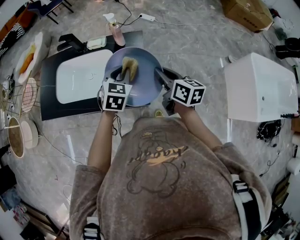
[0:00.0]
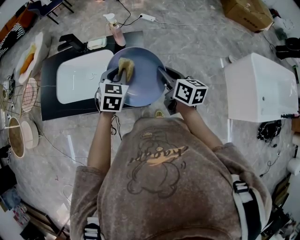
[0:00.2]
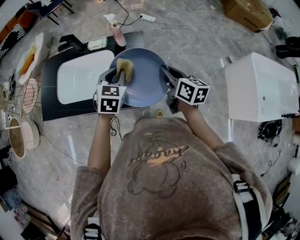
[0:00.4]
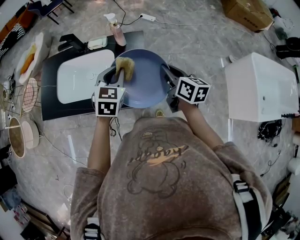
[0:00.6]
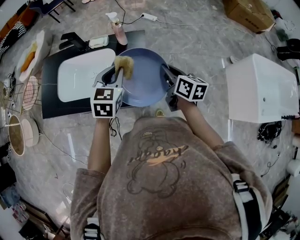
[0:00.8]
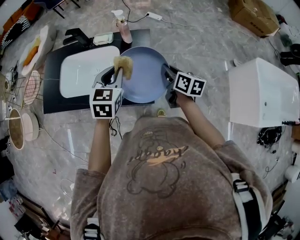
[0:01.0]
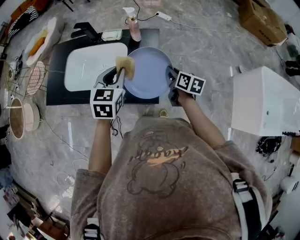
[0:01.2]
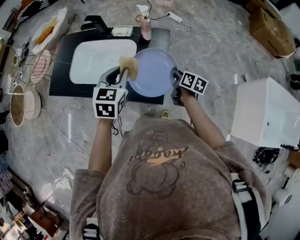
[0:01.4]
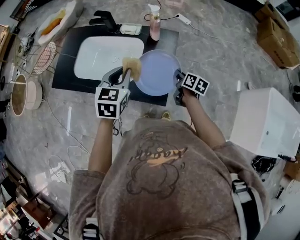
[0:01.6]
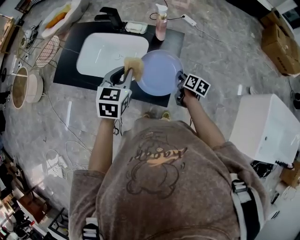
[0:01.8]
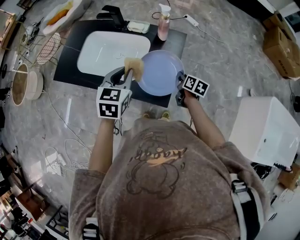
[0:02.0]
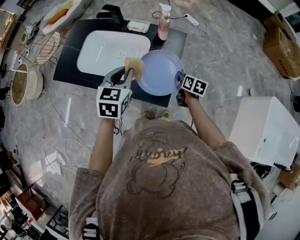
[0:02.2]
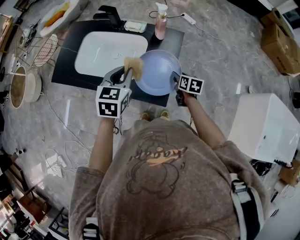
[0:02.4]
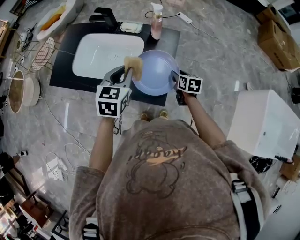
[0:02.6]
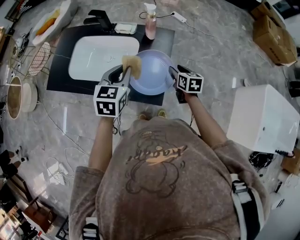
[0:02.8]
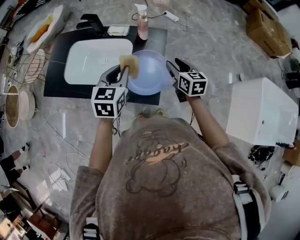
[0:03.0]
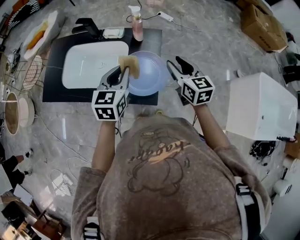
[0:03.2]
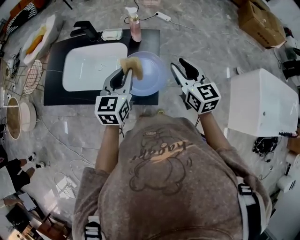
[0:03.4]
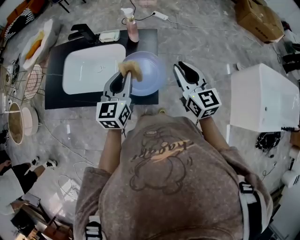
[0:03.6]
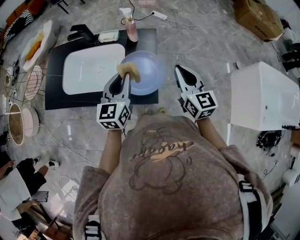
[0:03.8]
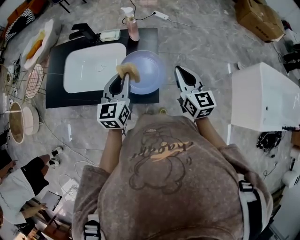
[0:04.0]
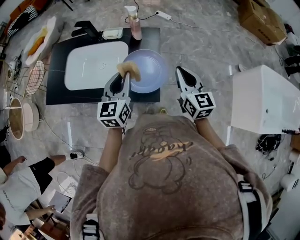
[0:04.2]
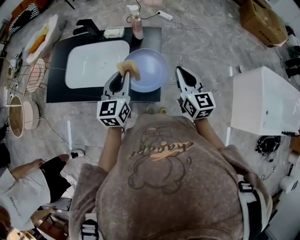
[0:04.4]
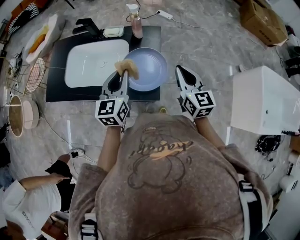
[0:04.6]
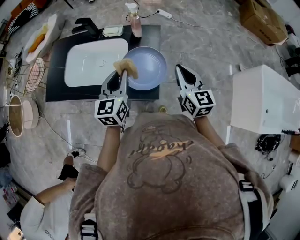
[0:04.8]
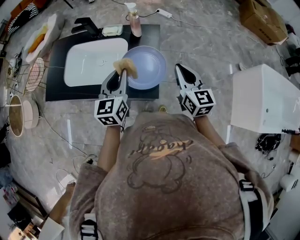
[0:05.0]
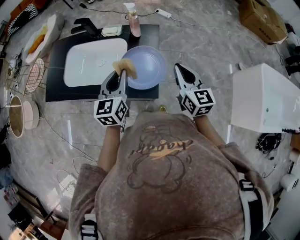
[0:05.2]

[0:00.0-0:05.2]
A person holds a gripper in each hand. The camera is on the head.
0:00.0 to 0:01.8: The left gripper moves to the left, some 10 cm, and rotates roughly 20 degrees. Meanwhile the right gripper moves downward and forward, approximately 20 cm, and rotates about 20 degrees.
0:01.8 to 0:03.4: The left gripper moves to the right, some 5 cm, while the right gripper travels upward by some 25 cm, twists approximately 40 degrees counterclockwise, seen from behind, and opens.
0:03.4 to 0:05.2: The right gripper closes.

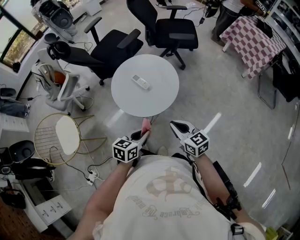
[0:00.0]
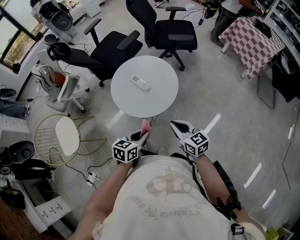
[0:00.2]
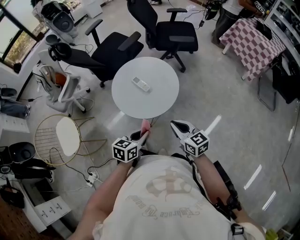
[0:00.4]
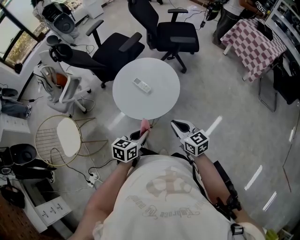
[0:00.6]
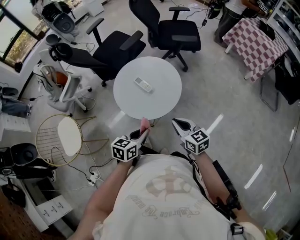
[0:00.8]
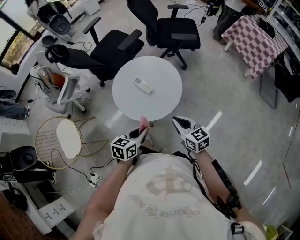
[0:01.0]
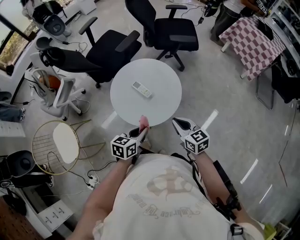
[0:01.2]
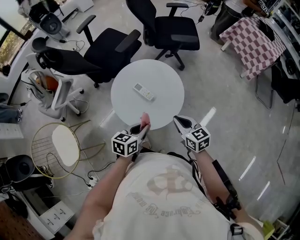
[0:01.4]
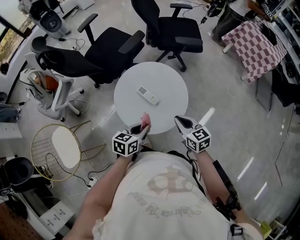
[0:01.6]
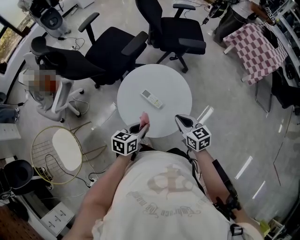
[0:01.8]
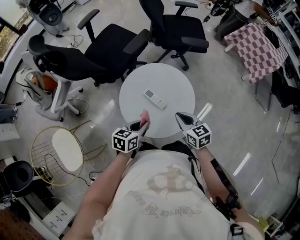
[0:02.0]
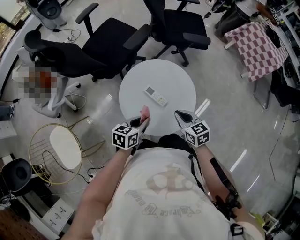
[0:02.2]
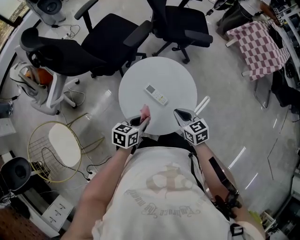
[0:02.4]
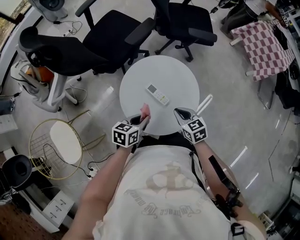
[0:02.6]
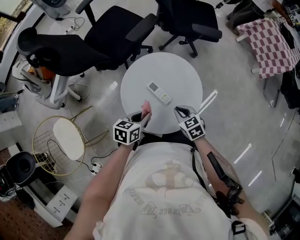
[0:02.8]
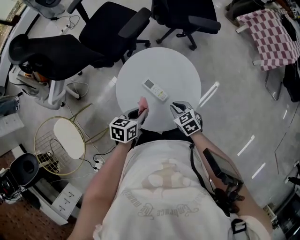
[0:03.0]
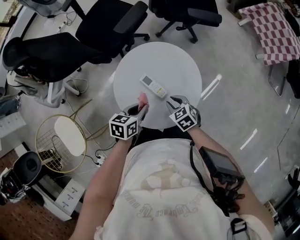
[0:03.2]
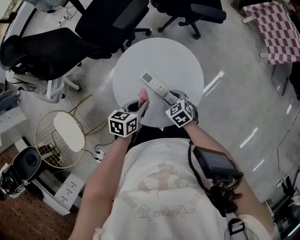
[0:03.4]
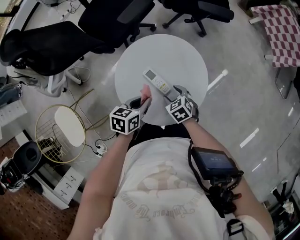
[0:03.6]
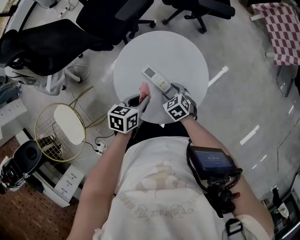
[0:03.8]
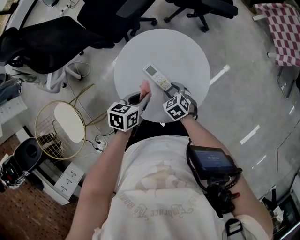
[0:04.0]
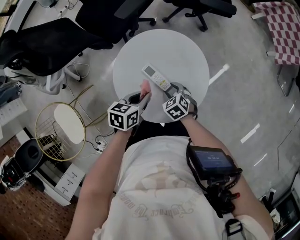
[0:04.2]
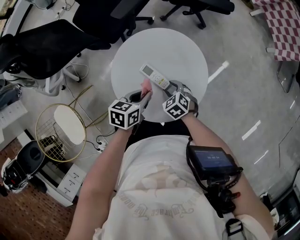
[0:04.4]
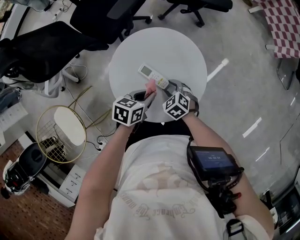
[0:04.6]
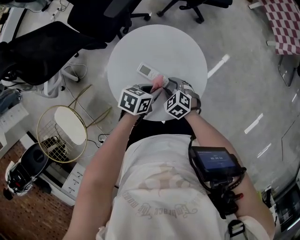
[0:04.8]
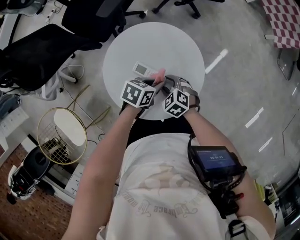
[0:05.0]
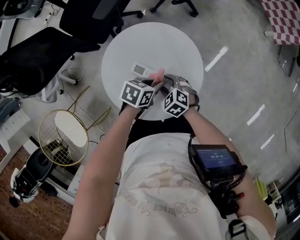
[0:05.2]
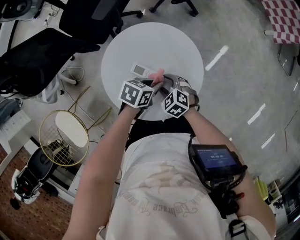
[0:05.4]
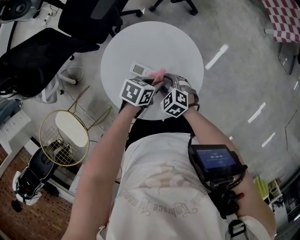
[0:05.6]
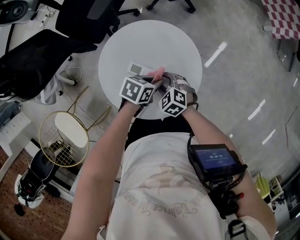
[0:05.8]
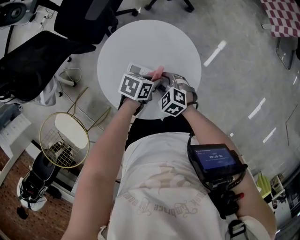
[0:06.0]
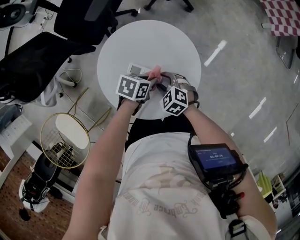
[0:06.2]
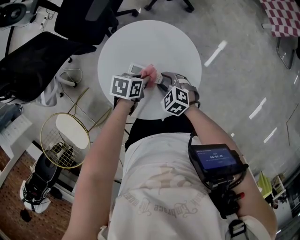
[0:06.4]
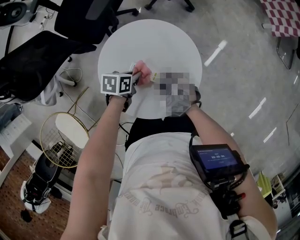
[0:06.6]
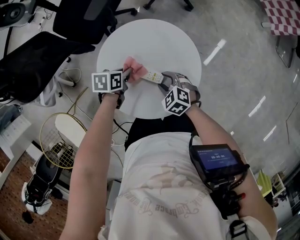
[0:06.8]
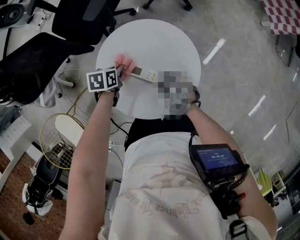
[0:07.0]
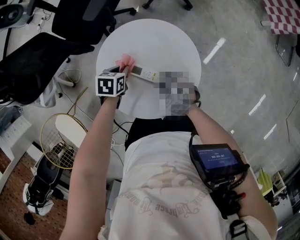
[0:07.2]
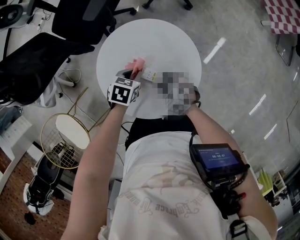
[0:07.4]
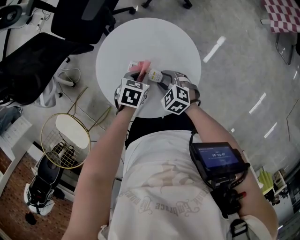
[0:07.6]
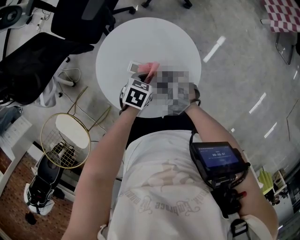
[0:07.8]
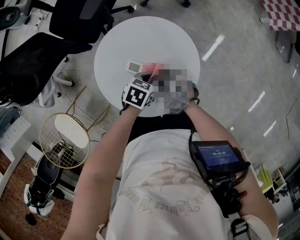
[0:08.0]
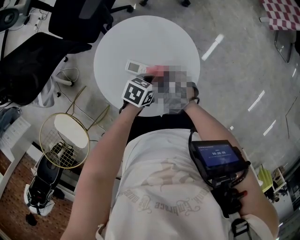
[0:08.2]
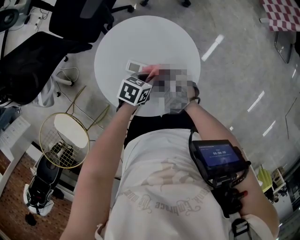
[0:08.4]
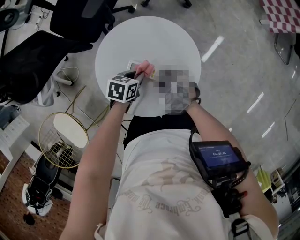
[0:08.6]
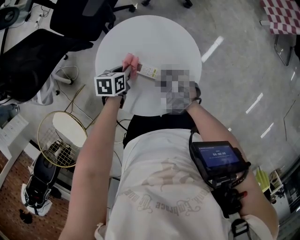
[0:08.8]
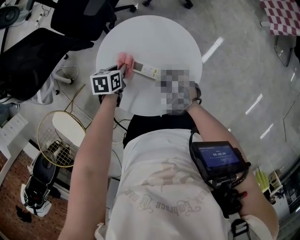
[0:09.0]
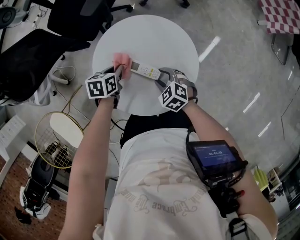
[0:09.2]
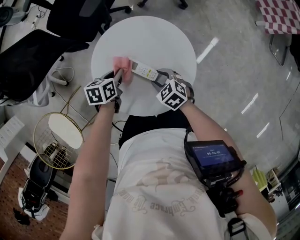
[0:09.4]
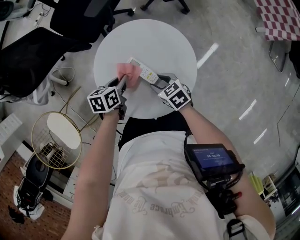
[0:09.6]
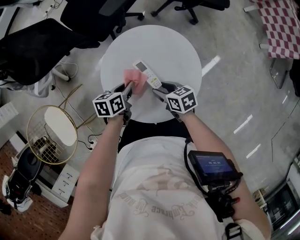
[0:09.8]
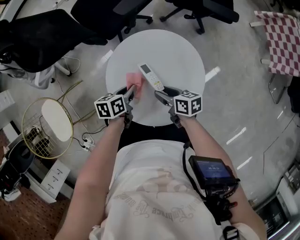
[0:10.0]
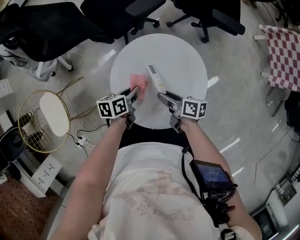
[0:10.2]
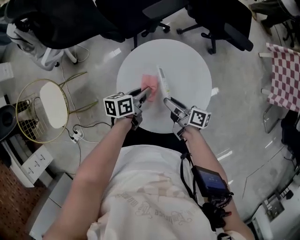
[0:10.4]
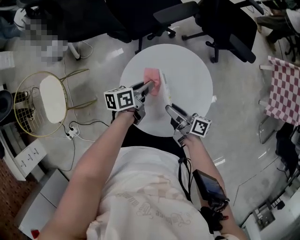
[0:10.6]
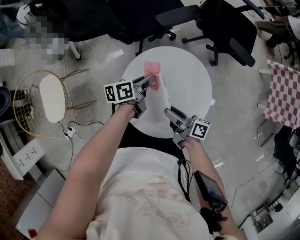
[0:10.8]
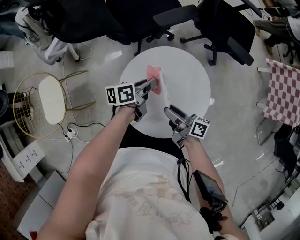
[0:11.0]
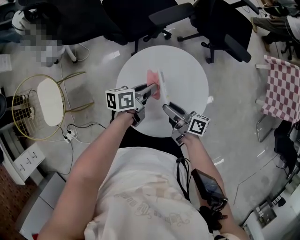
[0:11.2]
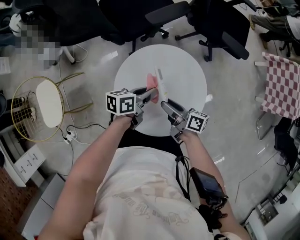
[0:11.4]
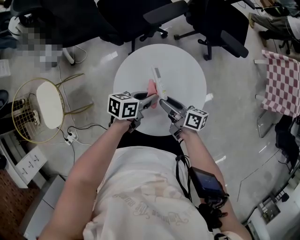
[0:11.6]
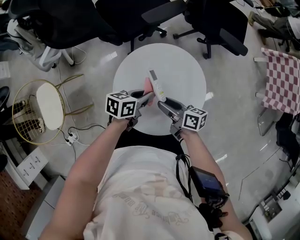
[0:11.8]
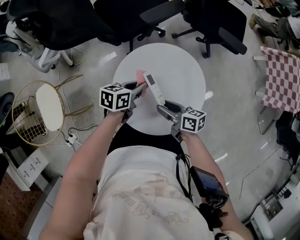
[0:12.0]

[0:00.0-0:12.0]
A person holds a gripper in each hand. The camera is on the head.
0:00.0 to 0:01.6: The right gripper moves forward, some 15 cm; the left gripper shifts roughly 15 cm forward and to the left.
0:01.6 to 0:03.0: The right gripper shifts about 15 cm downward, forward and to the left, and turns by about 30 degrees; the left gripper heads forward, to the left and downward, covering some 15 cm.
0:03.0 to 0:04.4: The right gripper moves downward, roughly 10 cm, and opens its fingers.
0:04.4 to 0:06.0: The left gripper ends up about 10 cm from where it was, and changes its angle by approximately 30 degrees.
0:06.0 to 0:07.6: The left gripper swivels roughly 20 degrees.
0:07.6 to 0:09.0: The left gripper changes place by approximately 10 cm, and rotates approximately 20 degrees.
0:09.0 to 0:10.4: The right gripper travels upward by about 10 cm, and rolls clockwise, seen from behind, by some 70 degrees; the left gripper goes about 10 cm upward and backward, and tilts its fingers about 30 degrees upward.
0:10.4 to 0:12.0: The right gripper rotates some 20 degrees, while the left gripper moves forward and backward over some 10 cm, changing direction 2 times.

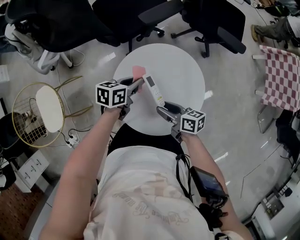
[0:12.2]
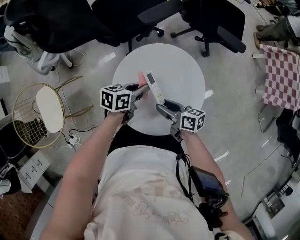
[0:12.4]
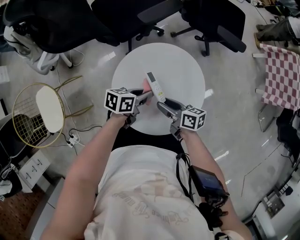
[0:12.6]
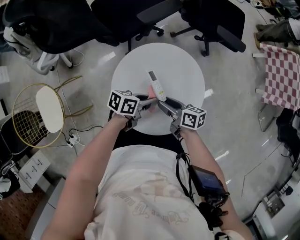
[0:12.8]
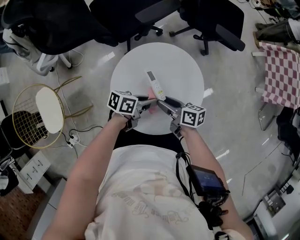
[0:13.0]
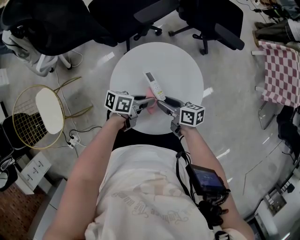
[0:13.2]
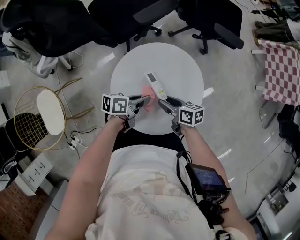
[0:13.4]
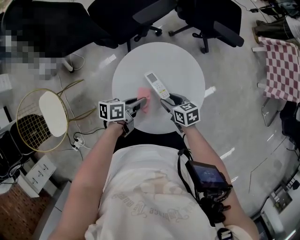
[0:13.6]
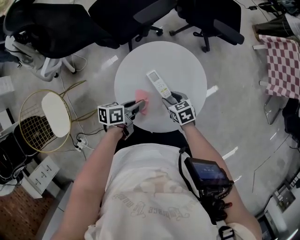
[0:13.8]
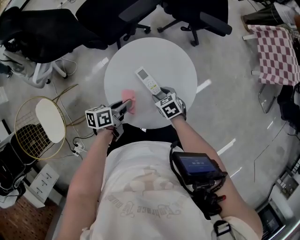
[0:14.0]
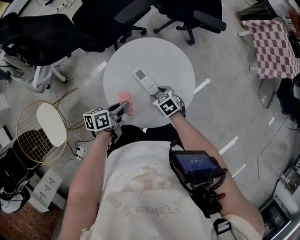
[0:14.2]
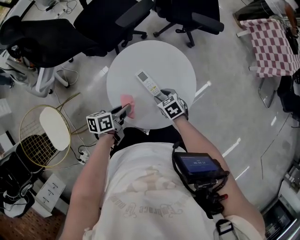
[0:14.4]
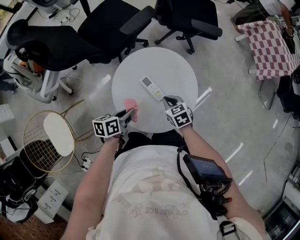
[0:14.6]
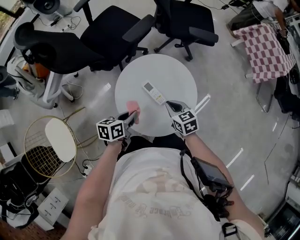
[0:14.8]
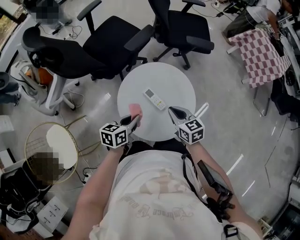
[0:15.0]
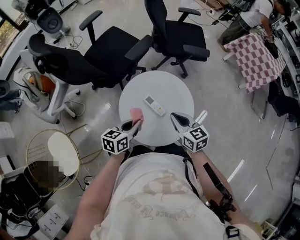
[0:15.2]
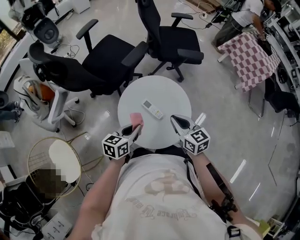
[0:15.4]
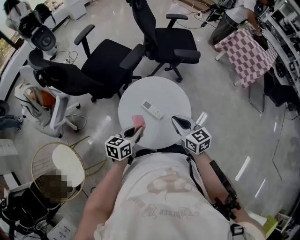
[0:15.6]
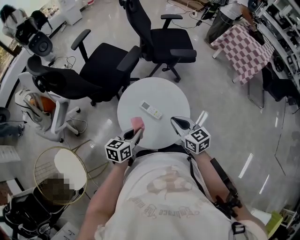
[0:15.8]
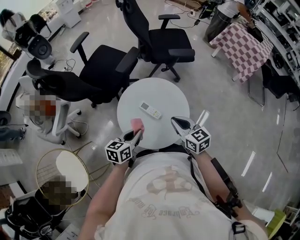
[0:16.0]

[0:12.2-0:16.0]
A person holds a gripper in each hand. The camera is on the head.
0:12.2 to 0:13.4: The left gripper moves about 10 cm, and changes its angle by approximately 20 degrees.
0:13.4 to 0:14.8: The right gripper shifts approximately 5 cm upward, swivels some 40 degrees, and closes its fingers. The left gripper moves approximately 10 cm, and swivels roughly 20 degrees.
0:14.8 to 0:16.0: The left gripper travels upward by about 10 cm, and turns by about 20 degrees. Meanwhile the right gripper heads upward, covering approximately 15 cm, and rotates some 20 degrees.

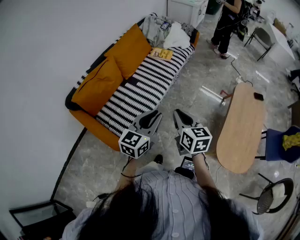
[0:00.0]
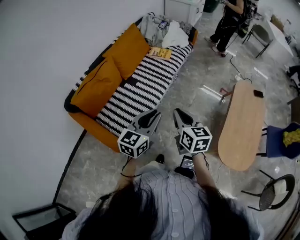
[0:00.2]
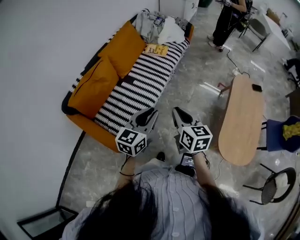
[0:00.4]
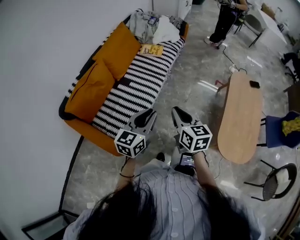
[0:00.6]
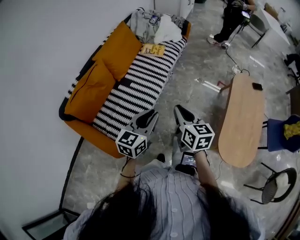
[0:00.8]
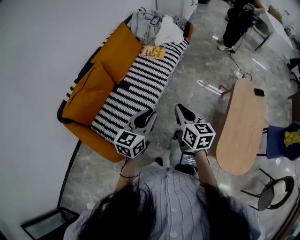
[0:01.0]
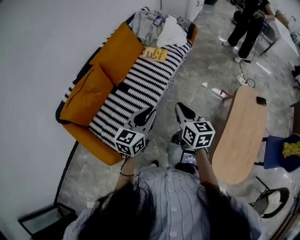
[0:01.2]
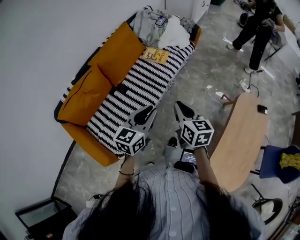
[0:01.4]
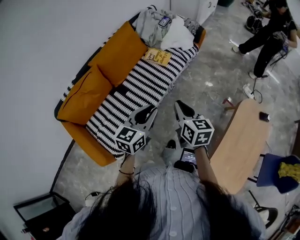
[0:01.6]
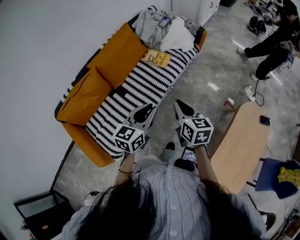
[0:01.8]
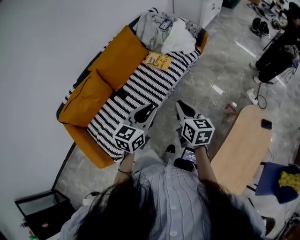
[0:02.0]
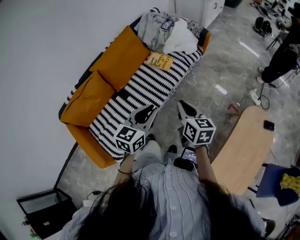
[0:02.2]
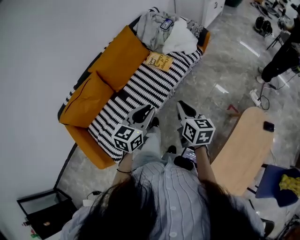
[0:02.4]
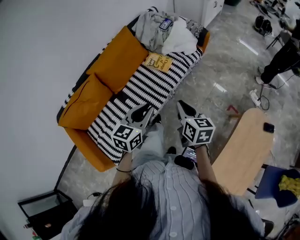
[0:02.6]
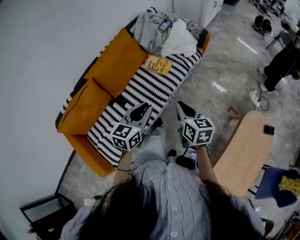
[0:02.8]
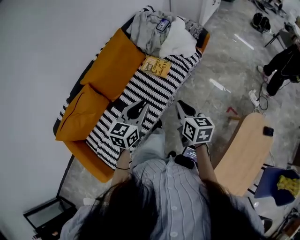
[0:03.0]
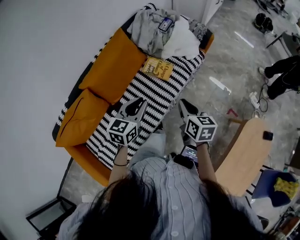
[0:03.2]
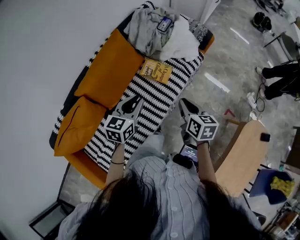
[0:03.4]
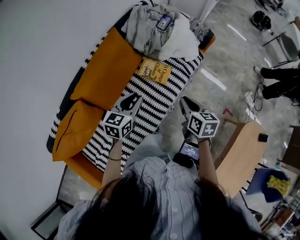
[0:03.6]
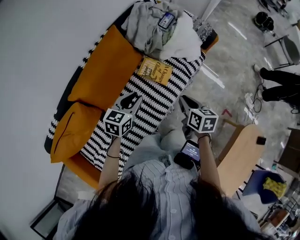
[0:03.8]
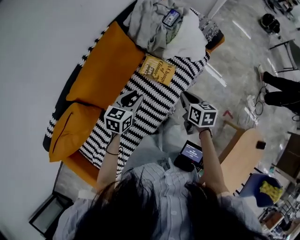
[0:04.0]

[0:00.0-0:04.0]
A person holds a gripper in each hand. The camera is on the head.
0:00.0 to 0:01.4: Both grippers move forward, roughly 25 cm.
0:01.4 to 0:02.6: Both grippers travel together forward and to the right, about 15 cm.
0:02.6 to 0:04.0: The right gripper shifts some 35 cm forward and downward, and rotates roughly 20 degrees. Meanwhile the left gripper moves forward, downward and to the left, roughly 40 cm.
